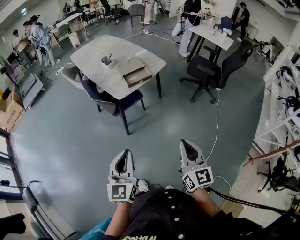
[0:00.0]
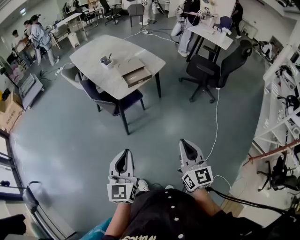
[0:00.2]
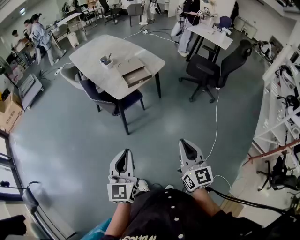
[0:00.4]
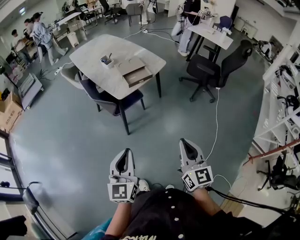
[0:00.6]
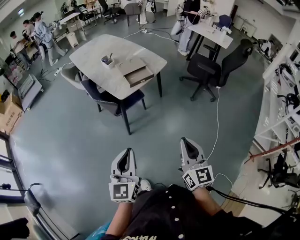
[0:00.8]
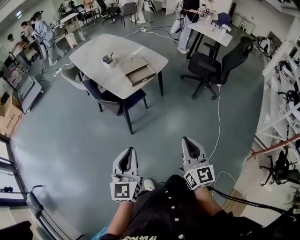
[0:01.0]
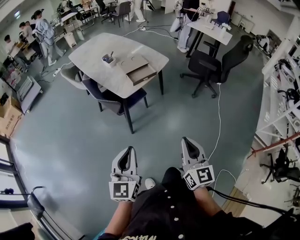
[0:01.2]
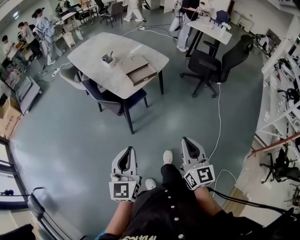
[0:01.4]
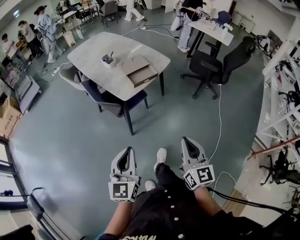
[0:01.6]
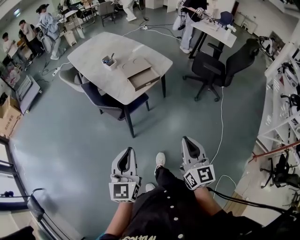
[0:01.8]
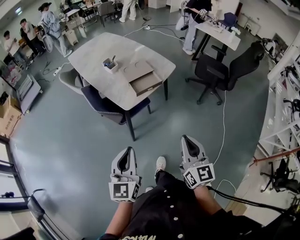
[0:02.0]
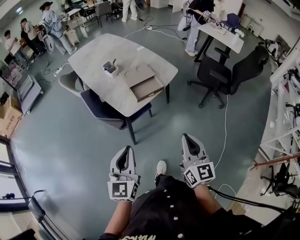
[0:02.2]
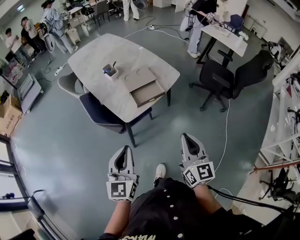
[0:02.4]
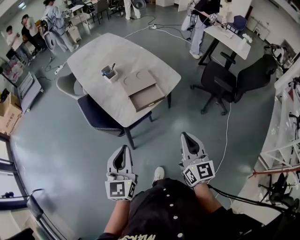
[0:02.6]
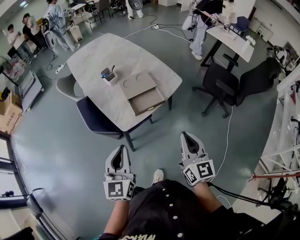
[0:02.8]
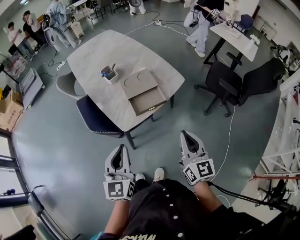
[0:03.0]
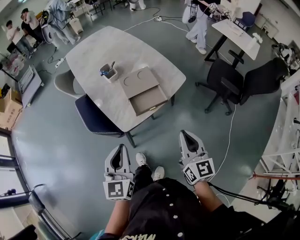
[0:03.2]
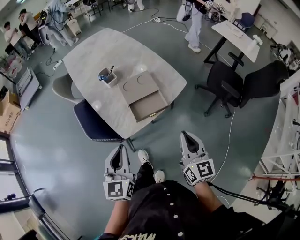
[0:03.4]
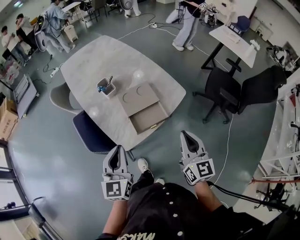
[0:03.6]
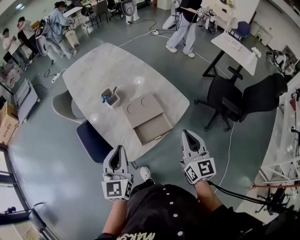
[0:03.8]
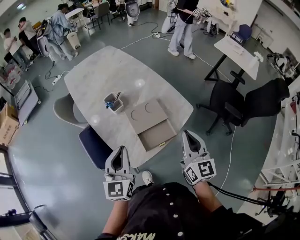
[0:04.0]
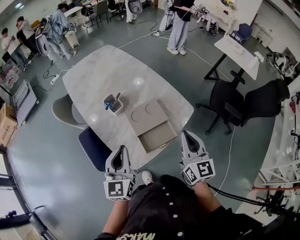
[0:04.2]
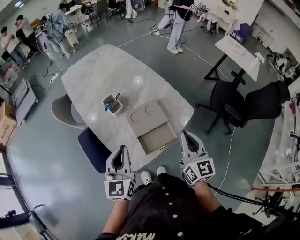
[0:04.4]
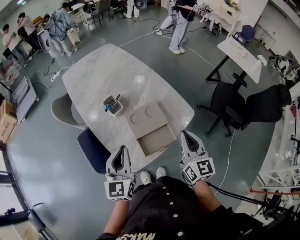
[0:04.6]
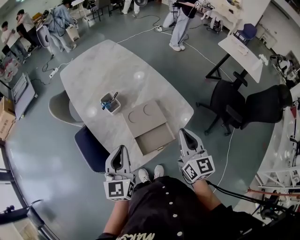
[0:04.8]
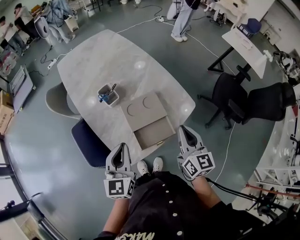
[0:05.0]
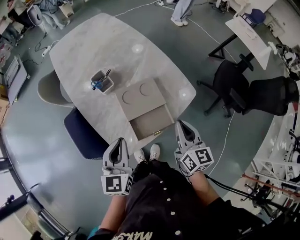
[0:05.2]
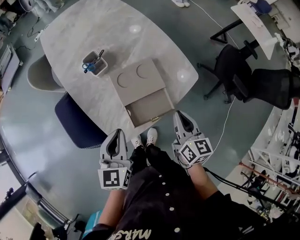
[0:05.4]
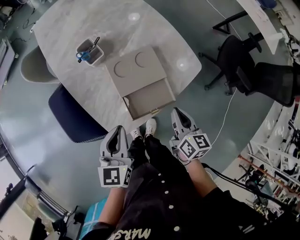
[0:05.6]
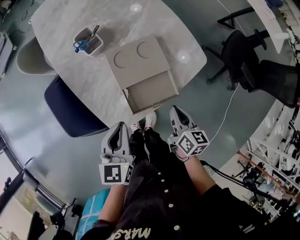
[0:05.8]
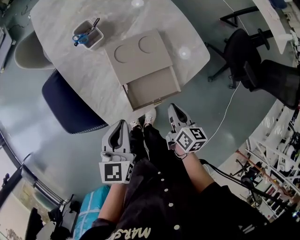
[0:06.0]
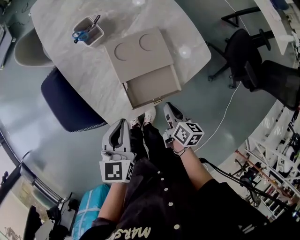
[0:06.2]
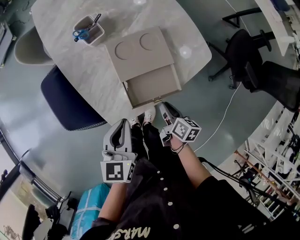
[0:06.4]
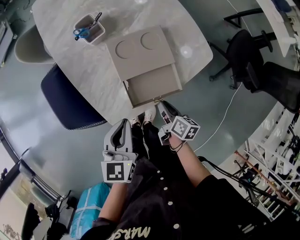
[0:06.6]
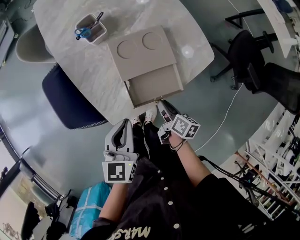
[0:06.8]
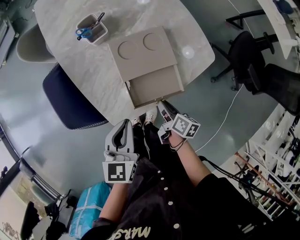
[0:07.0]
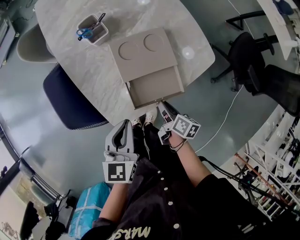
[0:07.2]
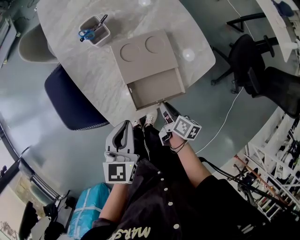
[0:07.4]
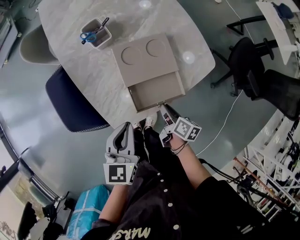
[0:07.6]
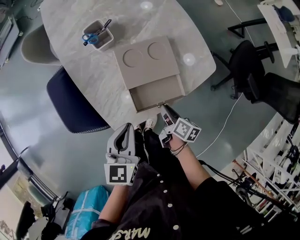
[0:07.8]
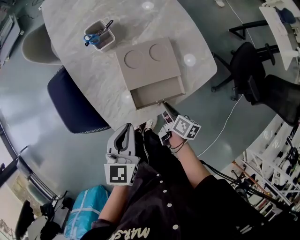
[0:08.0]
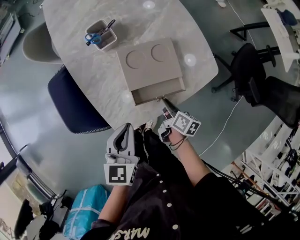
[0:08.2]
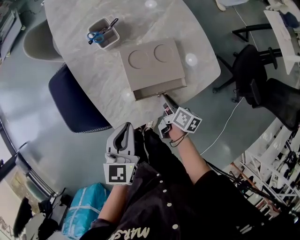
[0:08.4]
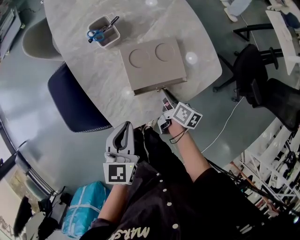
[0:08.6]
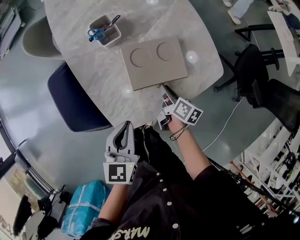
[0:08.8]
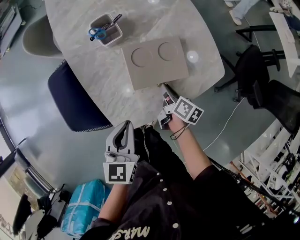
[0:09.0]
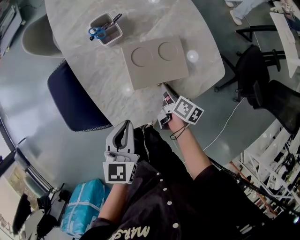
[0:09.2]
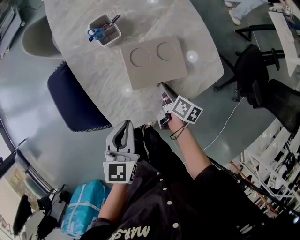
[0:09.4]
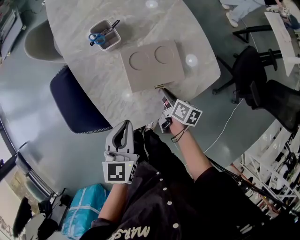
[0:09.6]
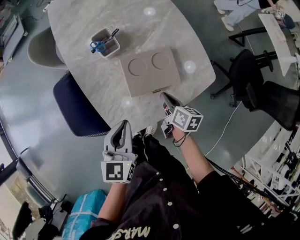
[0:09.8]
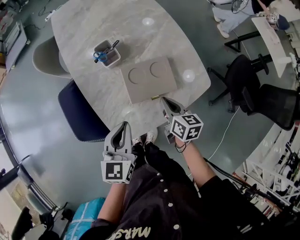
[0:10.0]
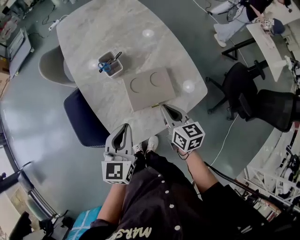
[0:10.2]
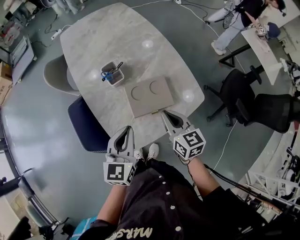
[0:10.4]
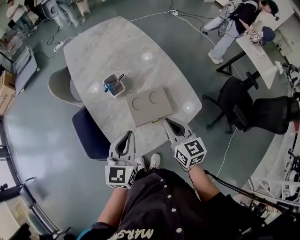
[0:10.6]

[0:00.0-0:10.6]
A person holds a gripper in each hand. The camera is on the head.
0:00.0 to 0:01.6: The right gripper travels to the left by some 5 cm; the left gripper travels to the left and forward by some 10 cm.
0:01.6 to 0:03.0: Both grippers travel together forward, approximately 30 cm.
0:03.0 to 0:04.6: Both grippers move forward, about 25 cm.
0:04.6 to 0:06.0: The left gripper goes some 15 cm downward, and changes its angle by about 20 degrees, while the right gripper heads downward, covering roughly 30 cm, and tilts its fingers approximately 30 degrees downward.
0:06.0 to 0:07.6: The right gripper moves downward, approximately 5 cm, and swivels about 20 degrees.
0:07.6 to 0:09.0: The right gripper goes some 10 cm forward.
0:09.0 to 0:10.6: The right gripper moves upward, about 25 cm, and twists roughly 50 degrees counterclockwise, seen from behind, while the left gripper goes about 15 cm upward.

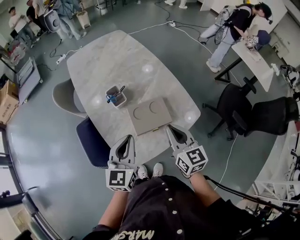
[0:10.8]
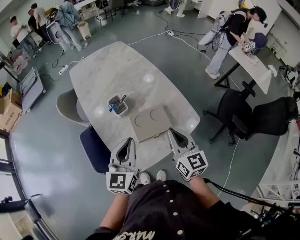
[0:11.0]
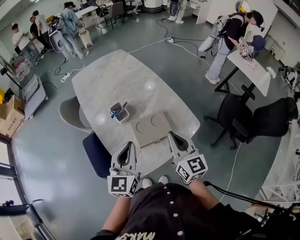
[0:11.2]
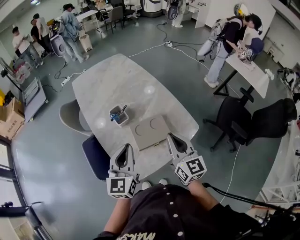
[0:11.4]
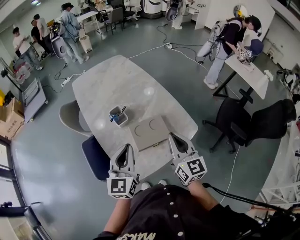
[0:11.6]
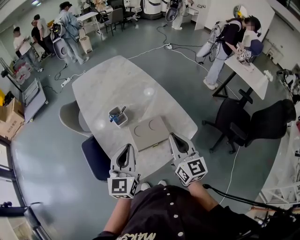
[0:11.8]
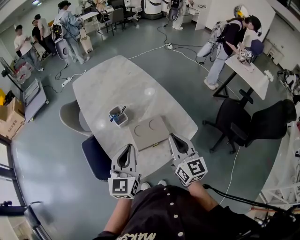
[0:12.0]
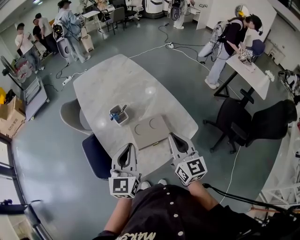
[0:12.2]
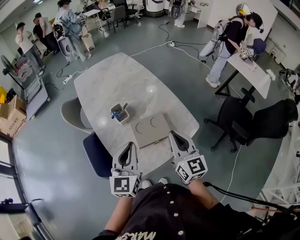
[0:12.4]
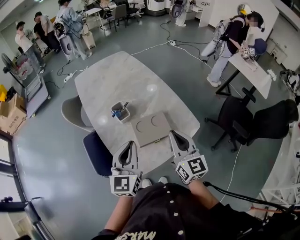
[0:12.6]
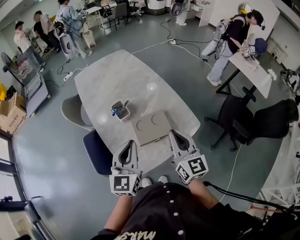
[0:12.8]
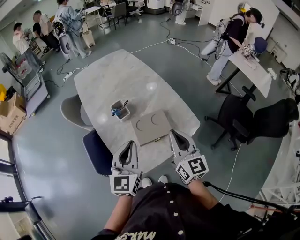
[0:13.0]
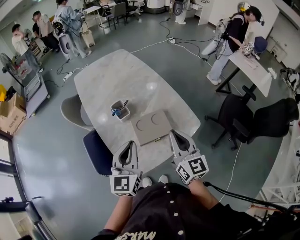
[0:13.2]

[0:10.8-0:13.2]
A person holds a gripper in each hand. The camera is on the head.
0:10.8 to 0:12.0: The two grippers go some 5 cm upward.
0:12.0 to 0:13.2: Both grippers stay put.

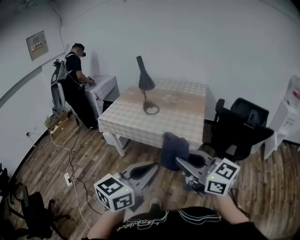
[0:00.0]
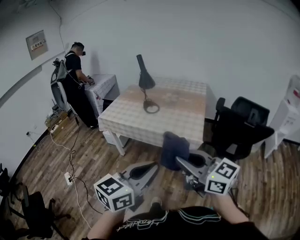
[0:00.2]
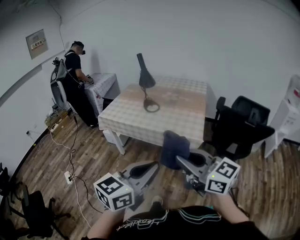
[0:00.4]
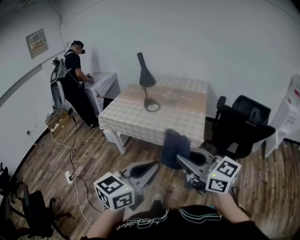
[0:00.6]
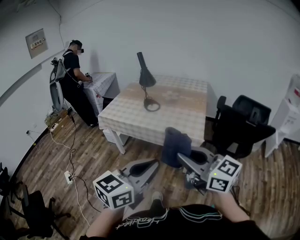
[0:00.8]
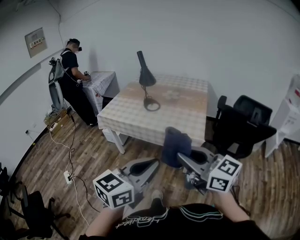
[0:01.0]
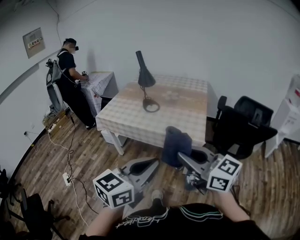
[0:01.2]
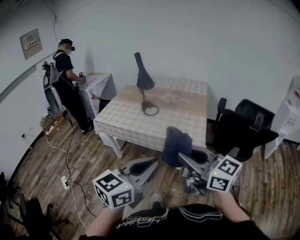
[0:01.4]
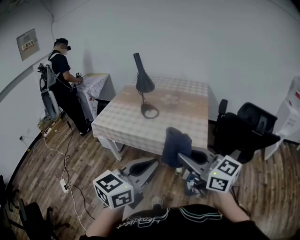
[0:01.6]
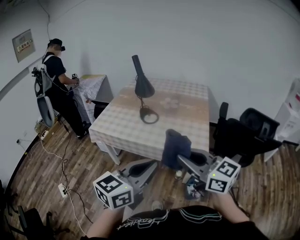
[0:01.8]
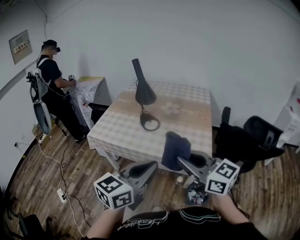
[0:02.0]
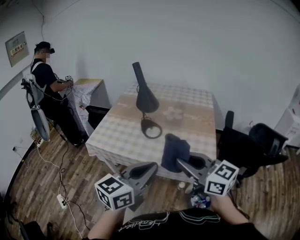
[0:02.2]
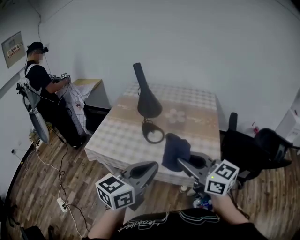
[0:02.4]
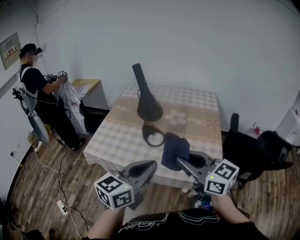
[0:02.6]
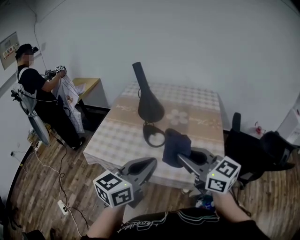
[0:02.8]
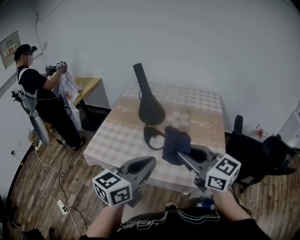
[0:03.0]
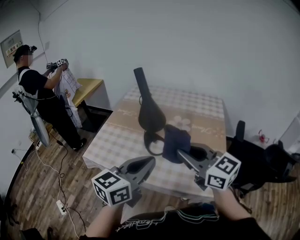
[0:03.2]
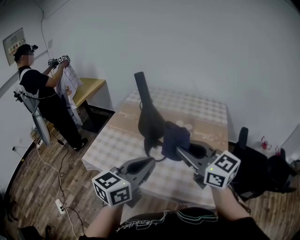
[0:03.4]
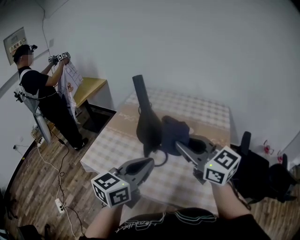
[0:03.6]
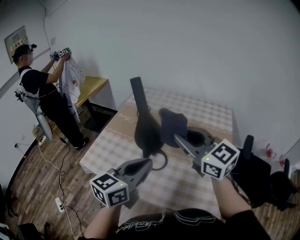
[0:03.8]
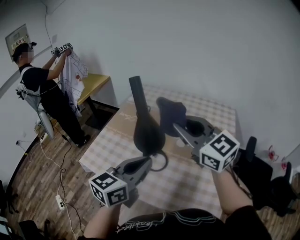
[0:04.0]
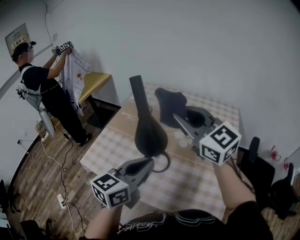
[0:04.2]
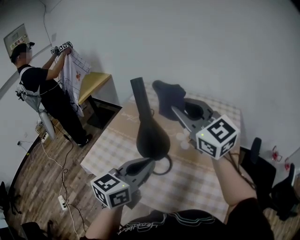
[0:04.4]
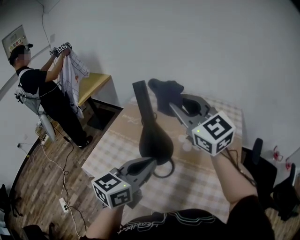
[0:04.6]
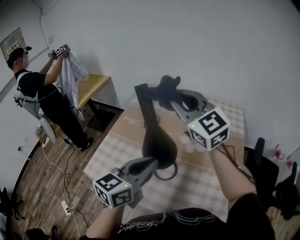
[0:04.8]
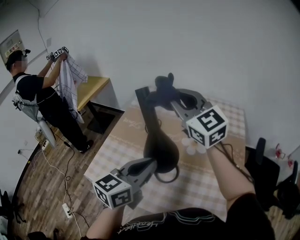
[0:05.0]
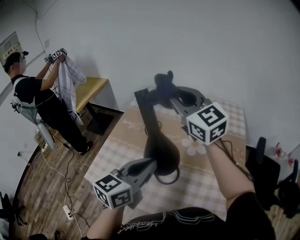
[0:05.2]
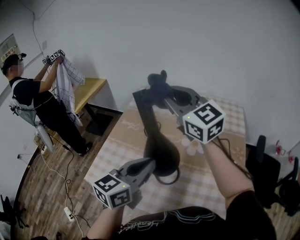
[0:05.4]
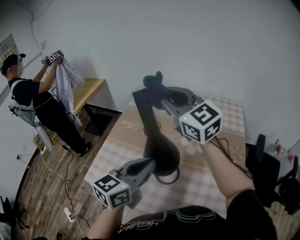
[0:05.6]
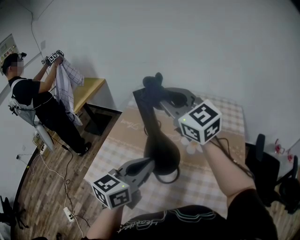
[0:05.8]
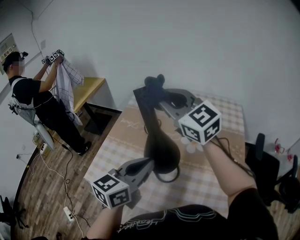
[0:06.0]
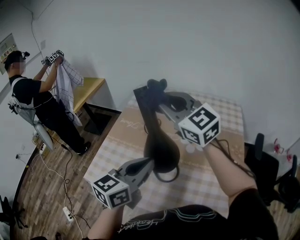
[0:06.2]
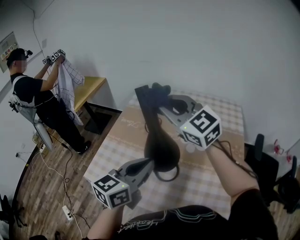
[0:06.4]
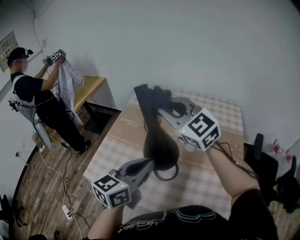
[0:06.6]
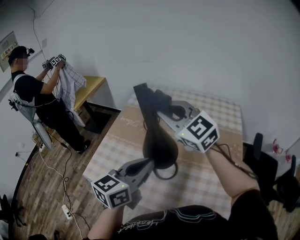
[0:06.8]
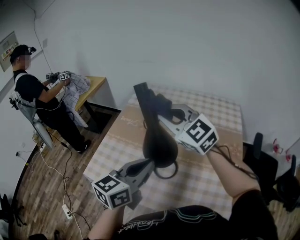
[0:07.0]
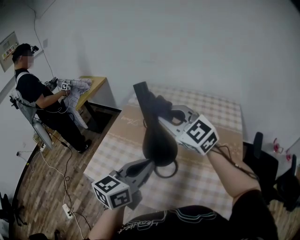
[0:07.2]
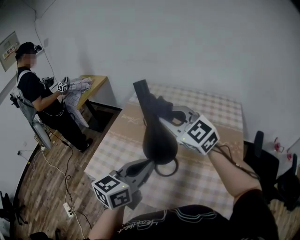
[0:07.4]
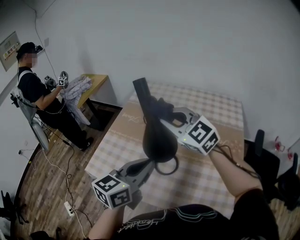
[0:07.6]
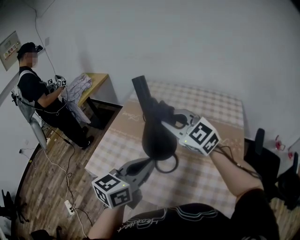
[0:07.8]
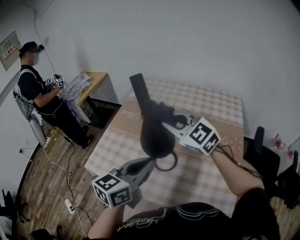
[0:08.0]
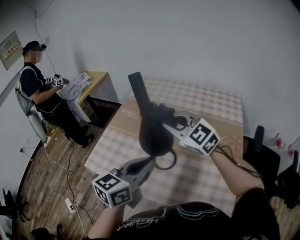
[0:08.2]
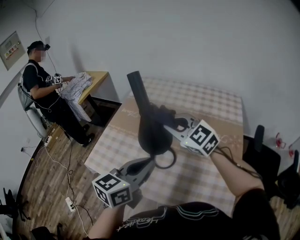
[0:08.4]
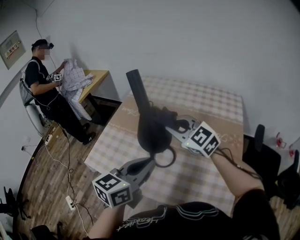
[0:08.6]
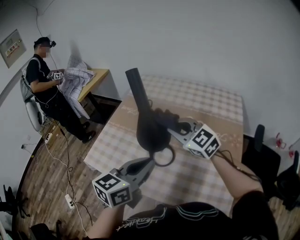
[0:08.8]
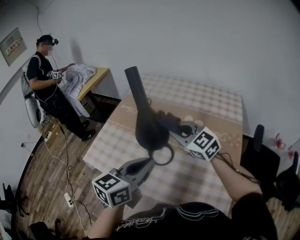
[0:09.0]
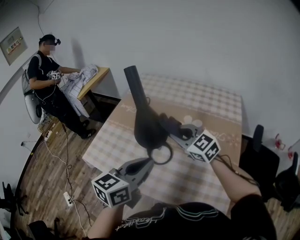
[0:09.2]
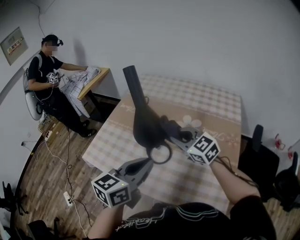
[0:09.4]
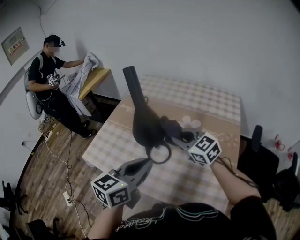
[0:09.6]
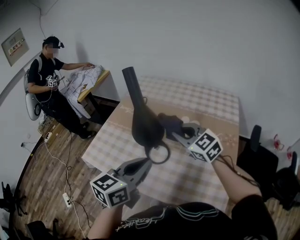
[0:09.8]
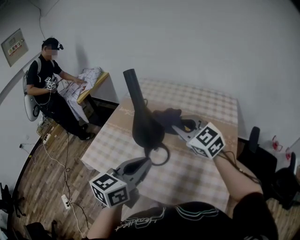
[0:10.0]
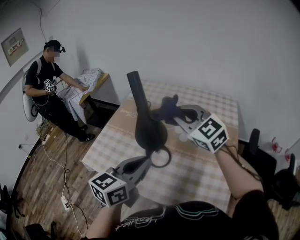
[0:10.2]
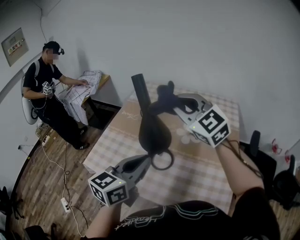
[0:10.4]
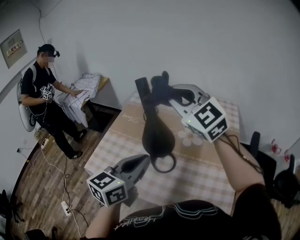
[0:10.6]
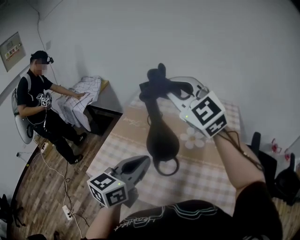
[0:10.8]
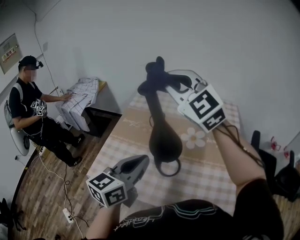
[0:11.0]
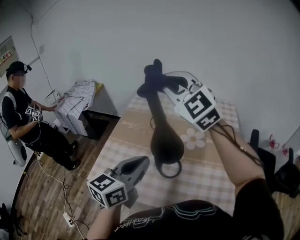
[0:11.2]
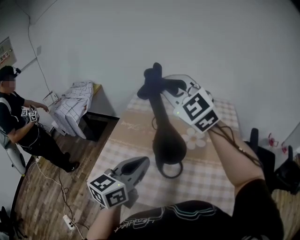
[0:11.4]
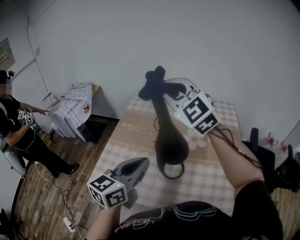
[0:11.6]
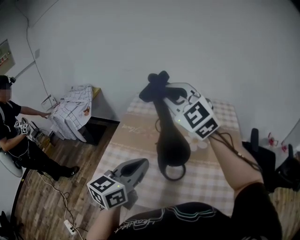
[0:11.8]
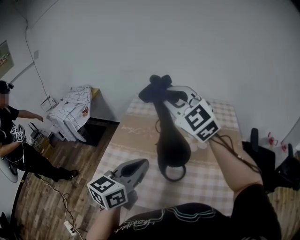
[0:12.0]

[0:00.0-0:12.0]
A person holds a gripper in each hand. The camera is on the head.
0:00.0 to 0:01.6: The grippers both shift forward by roughly 15 cm.
0:01.6 to 0:03.0: The two grippers go approximately 35 cm forward.
0:03.0 to 0:04.4: The left gripper is displaced forward by approximately 20 cm; the right gripper moves forward, roughly 30 cm, and rotates approximately 20 degrees.
0:04.4 to 0:06.0: The left gripper heads forward, covering approximately 5 cm. The right gripper heads forward and to the left, covering some 10 cm.
0:06.0 to 0:07.6: The right gripper is displaced downward and backward by approximately 10 cm.
0:07.6 to 0:09.0: The left gripper shifts by roughly 5 cm. Meanwhile the right gripper moves downward and to the right, approximately 10 cm.
0:09.0 to 0:10.4: The right gripper goes some 15 cm upward.
0:10.4 to 0:12.0: The left gripper shifts roughly 10 cm to the left, while the right gripper moves to the left and forward, approximately 10 cm.
